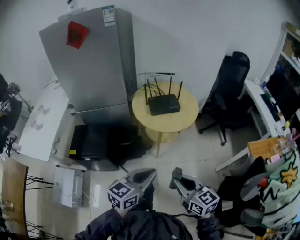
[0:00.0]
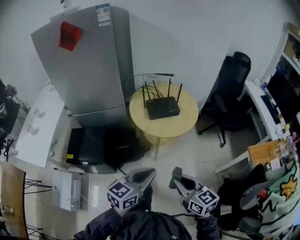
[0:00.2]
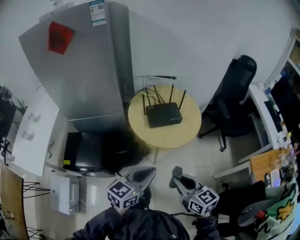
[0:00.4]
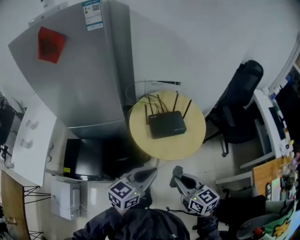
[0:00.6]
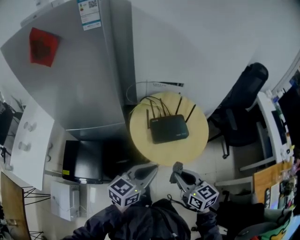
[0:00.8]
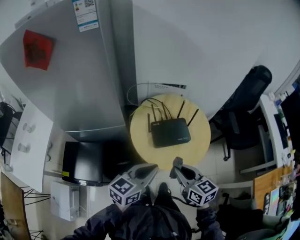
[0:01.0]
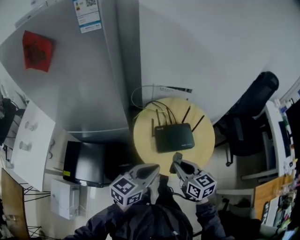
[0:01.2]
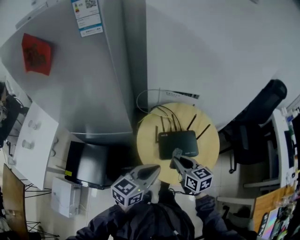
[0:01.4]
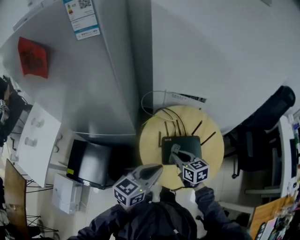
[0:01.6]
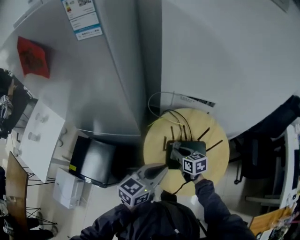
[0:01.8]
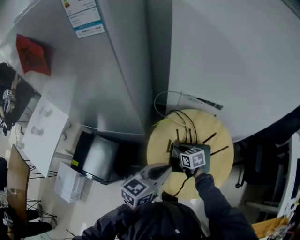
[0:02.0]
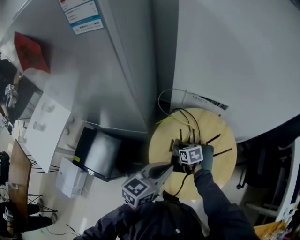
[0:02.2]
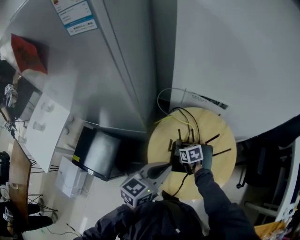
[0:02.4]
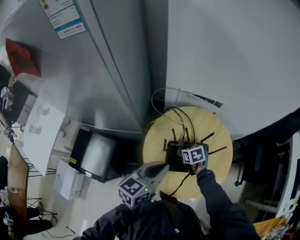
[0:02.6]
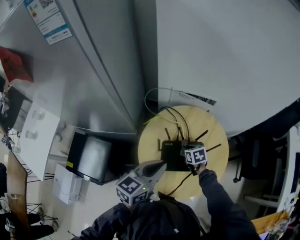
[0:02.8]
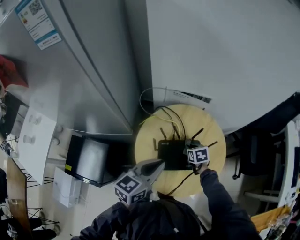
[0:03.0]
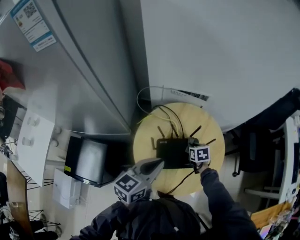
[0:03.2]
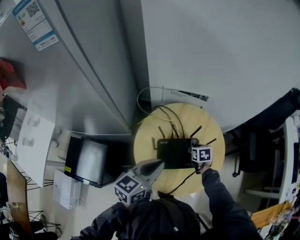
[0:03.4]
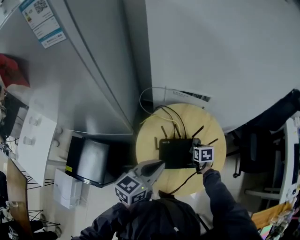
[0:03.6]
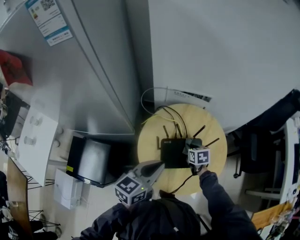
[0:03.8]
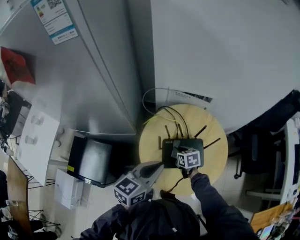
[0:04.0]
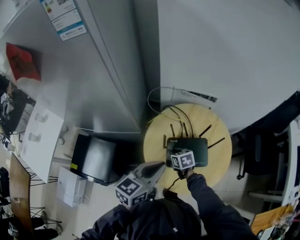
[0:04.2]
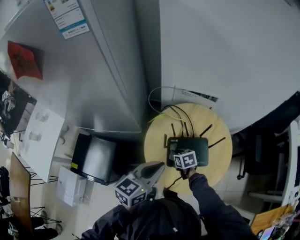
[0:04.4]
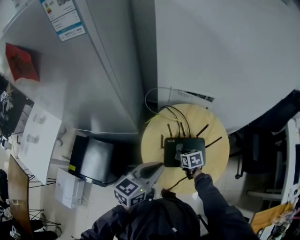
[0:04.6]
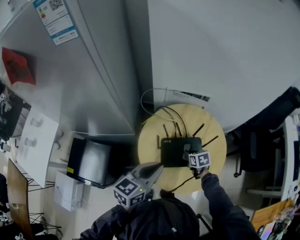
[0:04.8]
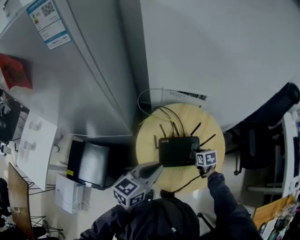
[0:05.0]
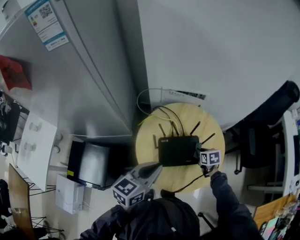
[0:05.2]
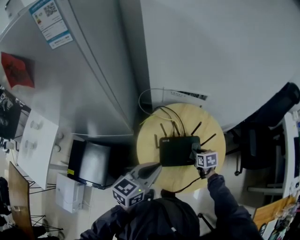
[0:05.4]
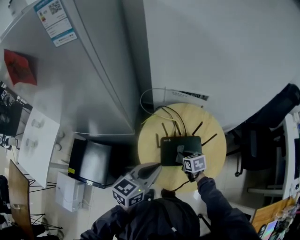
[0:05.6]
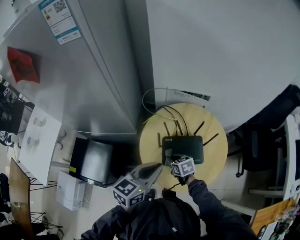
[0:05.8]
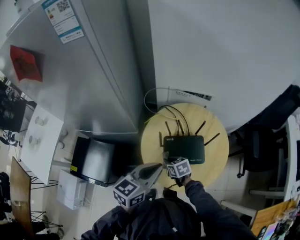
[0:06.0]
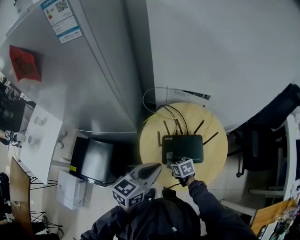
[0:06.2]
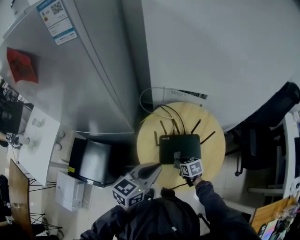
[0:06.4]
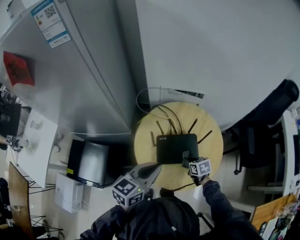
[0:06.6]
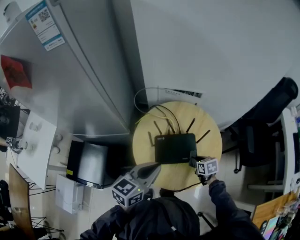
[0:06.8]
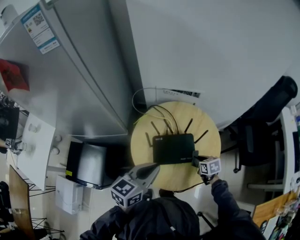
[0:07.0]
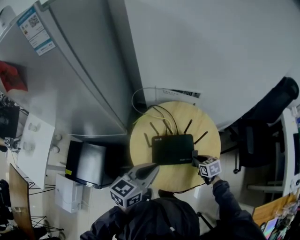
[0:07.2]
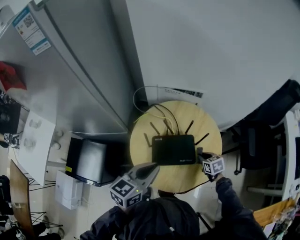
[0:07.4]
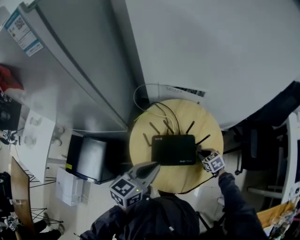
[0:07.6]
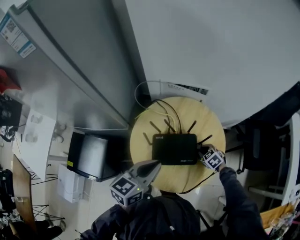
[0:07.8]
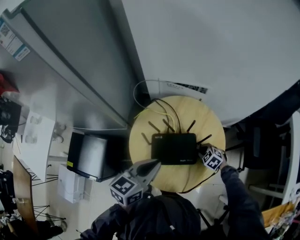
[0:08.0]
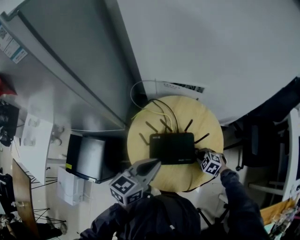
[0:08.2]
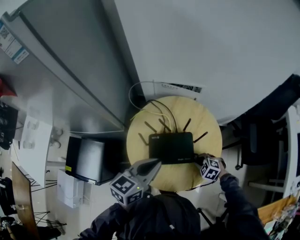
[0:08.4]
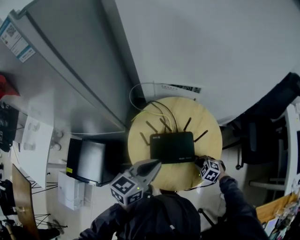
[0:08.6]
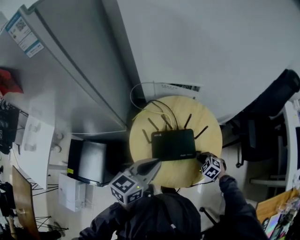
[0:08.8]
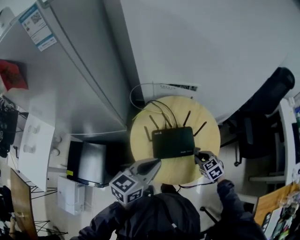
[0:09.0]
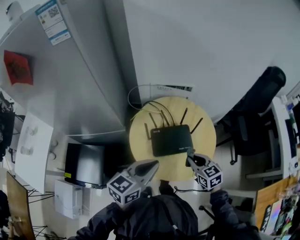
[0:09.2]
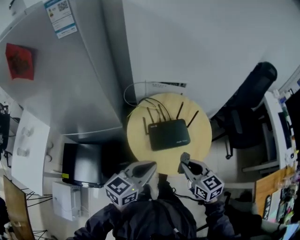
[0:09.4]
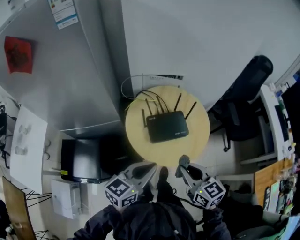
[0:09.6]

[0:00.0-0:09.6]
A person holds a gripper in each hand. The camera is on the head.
0:00.0 to 0:01.6: The two grippers travel together, forward, some 60 cm.
0:01.6 to 0:03.2: The right gripper goes about 25 cm downward, to the right and forward, and changes its angle by about 30 degrees, while the left gripper travels forward by some 10 cm.
0:03.2 to 0:04.8: The right gripper travels backward by approximately 5 cm, and travels to the left and back again, about 15 cm each way.
0:04.8 to 0:06.4: The right gripper goes left and right, approximately 25 cm each way, reversing 2 times.
0:06.4 to 0:08.0: The right gripper heads to the right, covering roughly 15 cm, and rolls counterclockwise, seen from behind, by approximately 40 degrees, while the left gripper is displaced to the right by approximately 5 cm.
0:08.0 to 0:09.6: The right gripper travels upward, backward and to the left by approximately 40 cm, and angles its fingers upward, by some 40 degrees; the left gripper heads backward, covering approximately 20 cm.

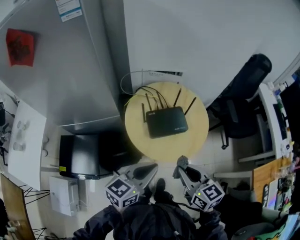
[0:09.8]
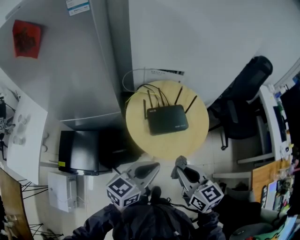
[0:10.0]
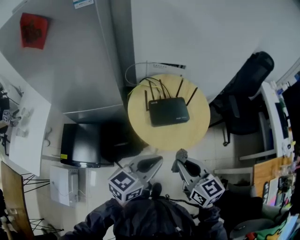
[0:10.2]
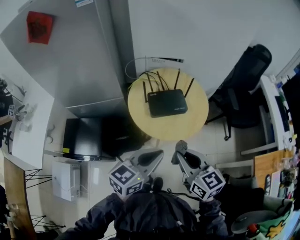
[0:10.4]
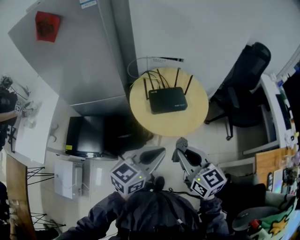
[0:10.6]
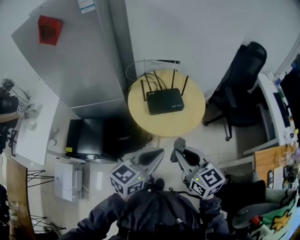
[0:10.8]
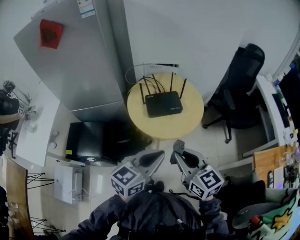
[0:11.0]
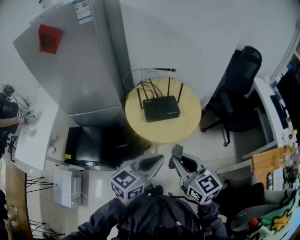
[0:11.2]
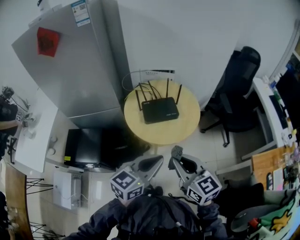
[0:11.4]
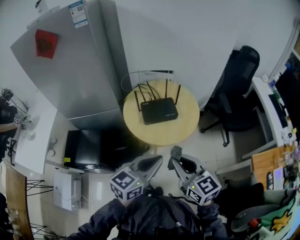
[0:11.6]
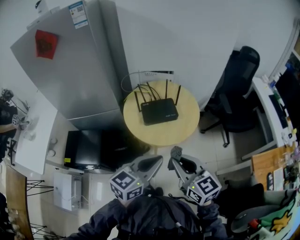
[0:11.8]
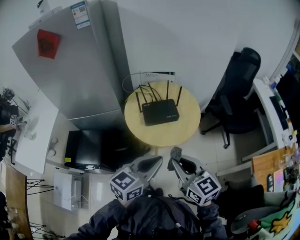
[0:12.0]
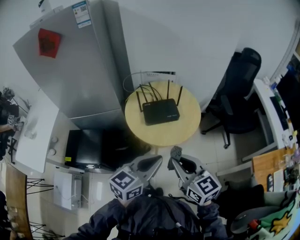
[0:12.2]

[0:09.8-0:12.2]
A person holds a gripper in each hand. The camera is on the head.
0:09.8 to 0:11.0: The left gripper shifts roughly 15 cm backward and to the right. The right gripper heads backward, covering some 15 cm.
0:11.0 to 0:12.2: There are only small adjustments of the grippers.

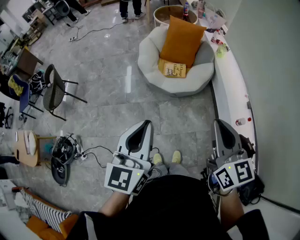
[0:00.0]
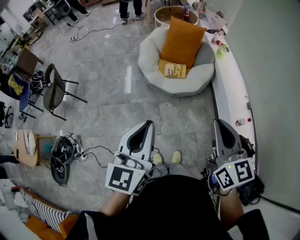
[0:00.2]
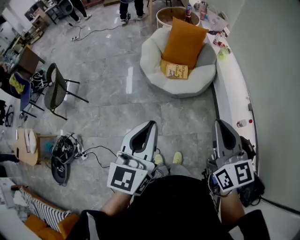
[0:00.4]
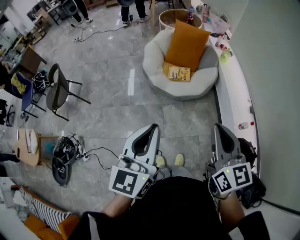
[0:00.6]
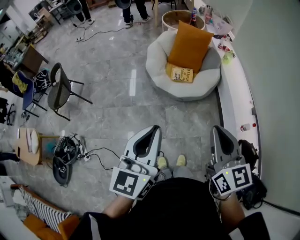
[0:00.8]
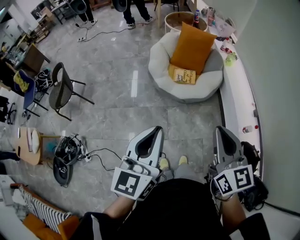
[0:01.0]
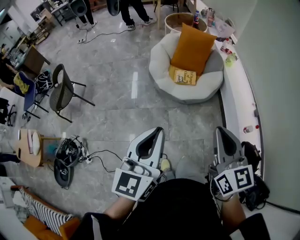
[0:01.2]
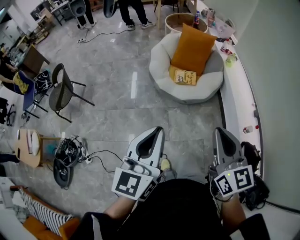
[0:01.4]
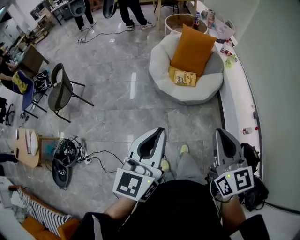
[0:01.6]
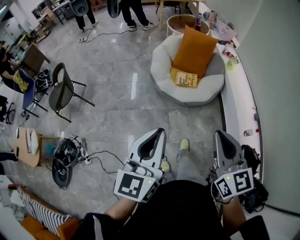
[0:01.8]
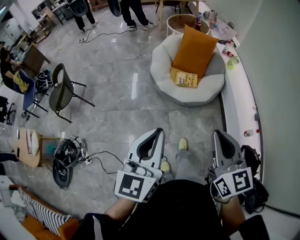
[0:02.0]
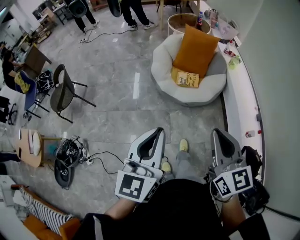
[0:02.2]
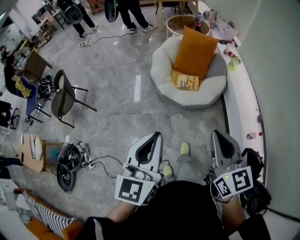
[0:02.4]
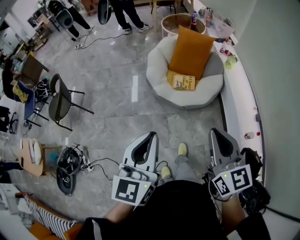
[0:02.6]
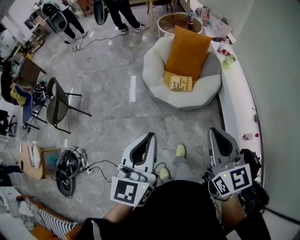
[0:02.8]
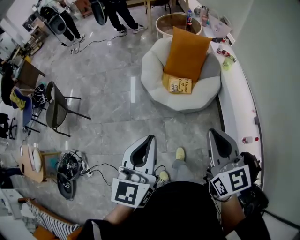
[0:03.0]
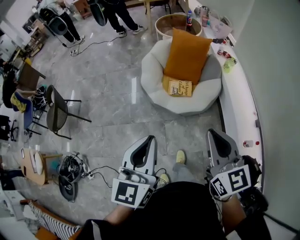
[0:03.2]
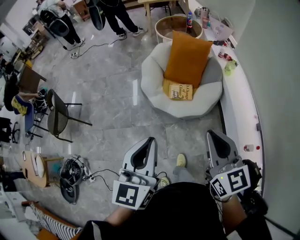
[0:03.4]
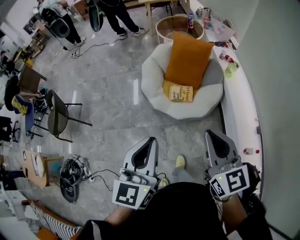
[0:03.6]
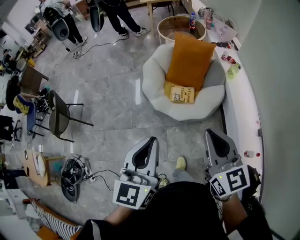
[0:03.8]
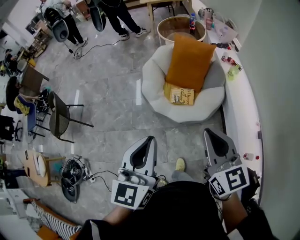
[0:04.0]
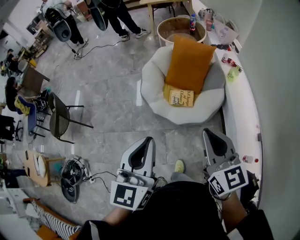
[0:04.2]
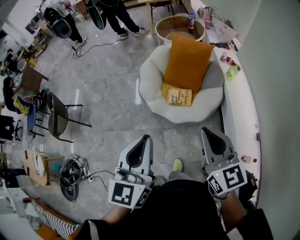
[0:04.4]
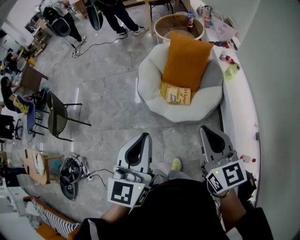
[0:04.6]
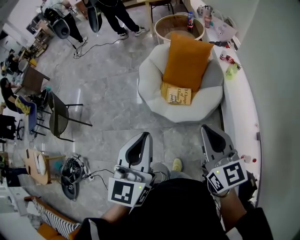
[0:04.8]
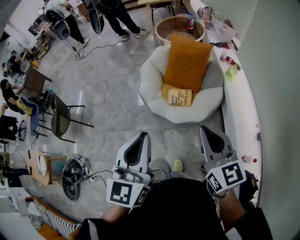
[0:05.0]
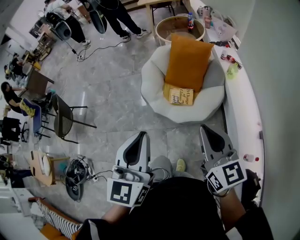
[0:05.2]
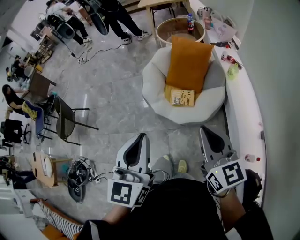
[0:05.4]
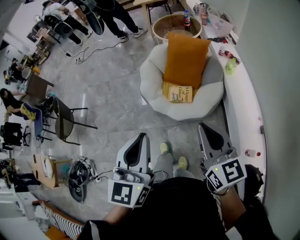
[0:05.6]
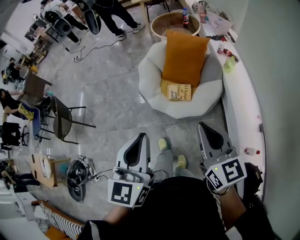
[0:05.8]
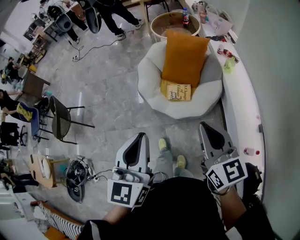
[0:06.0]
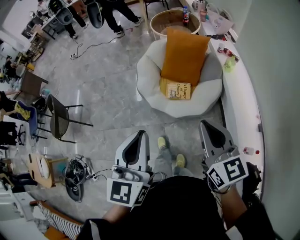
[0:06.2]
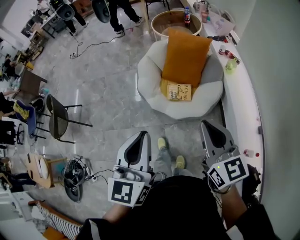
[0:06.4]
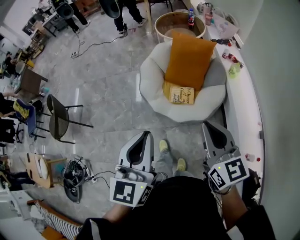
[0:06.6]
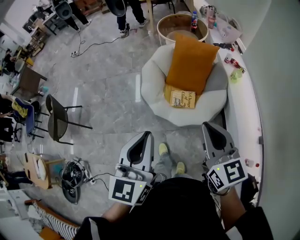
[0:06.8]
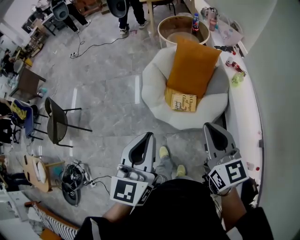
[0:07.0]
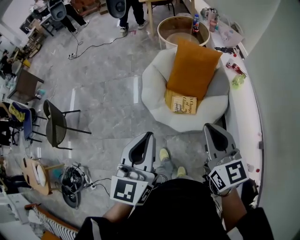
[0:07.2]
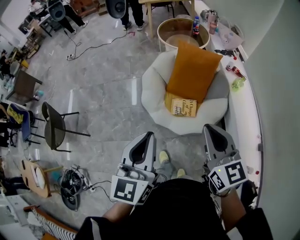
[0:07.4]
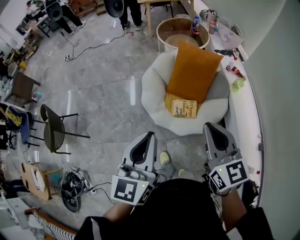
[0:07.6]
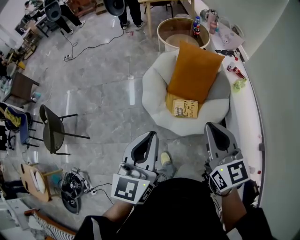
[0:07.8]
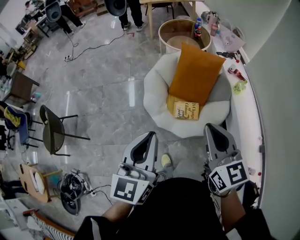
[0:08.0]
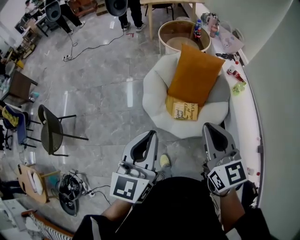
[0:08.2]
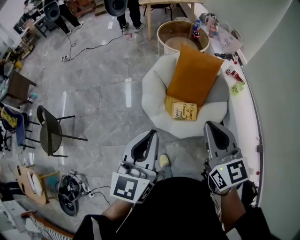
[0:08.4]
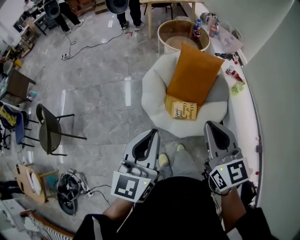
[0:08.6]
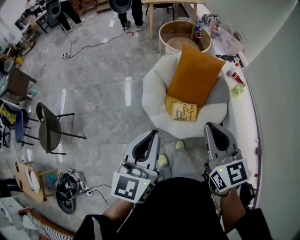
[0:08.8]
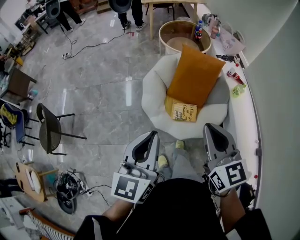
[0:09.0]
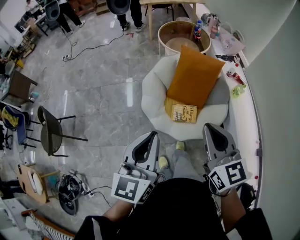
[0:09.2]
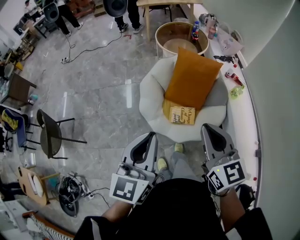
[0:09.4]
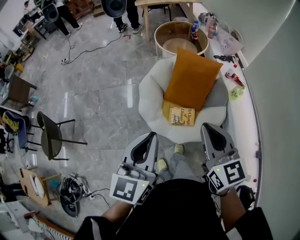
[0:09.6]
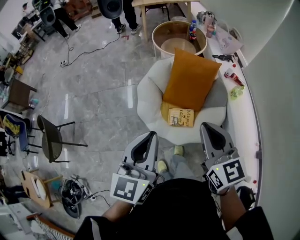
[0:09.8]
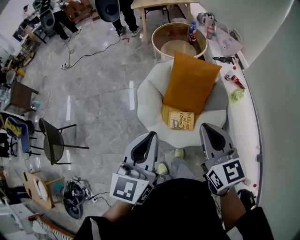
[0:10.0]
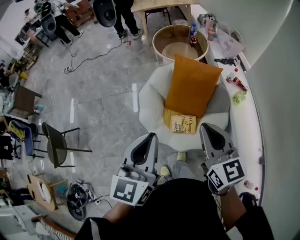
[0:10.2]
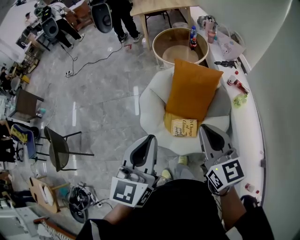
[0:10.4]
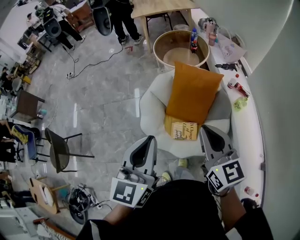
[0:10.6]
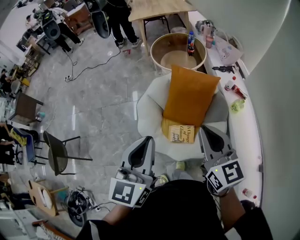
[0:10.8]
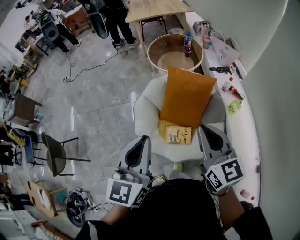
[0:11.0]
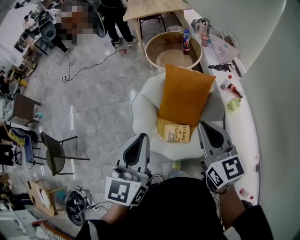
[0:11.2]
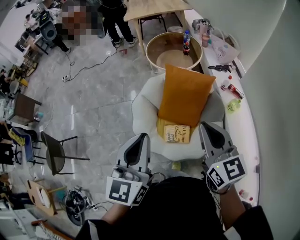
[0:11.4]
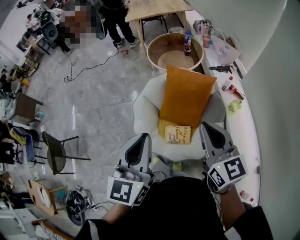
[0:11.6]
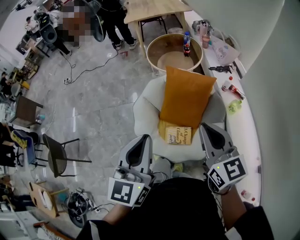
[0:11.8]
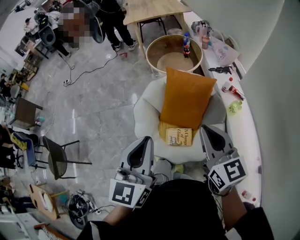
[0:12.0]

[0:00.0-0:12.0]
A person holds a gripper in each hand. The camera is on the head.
0:00.0 to 0:01.6: Both grippers move to the left, roughly 5 cm.
0:01.6 to 0:03.0: The grippers both shift forward and to the right by about 15 cm.
0:03.0 to 0:04.4: Both grippers move forward and to the right, some 15 cm.
0:04.4 to 0:06.0: The grippers move only a little.
0:06.0 to 0:07.6: The grippers both shift forward and to the left by about 20 cm.
0:07.6 to 0:09.0: The grippers make only small movements.
0:09.0 to 0:10.4: The grippers both shift forward and to the right by approximately 15 cm.
0:10.4 to 0:12.0: The two grippers go about 5 cm to the right.
